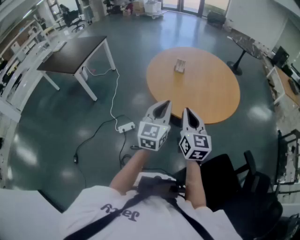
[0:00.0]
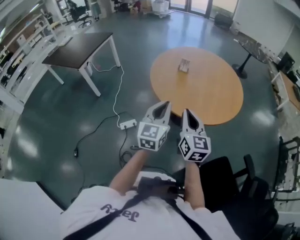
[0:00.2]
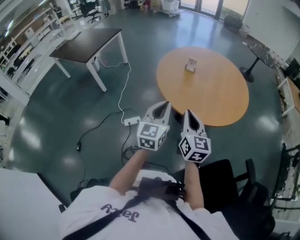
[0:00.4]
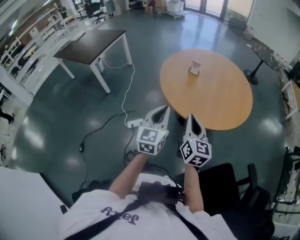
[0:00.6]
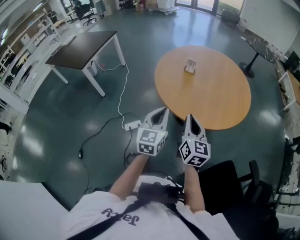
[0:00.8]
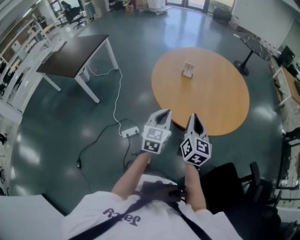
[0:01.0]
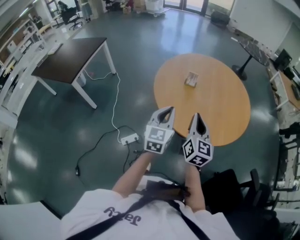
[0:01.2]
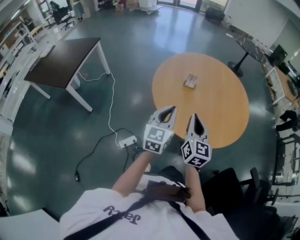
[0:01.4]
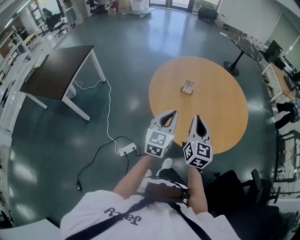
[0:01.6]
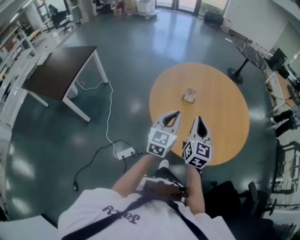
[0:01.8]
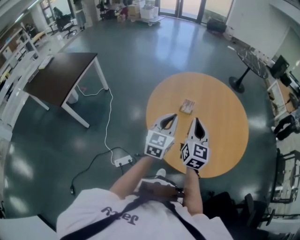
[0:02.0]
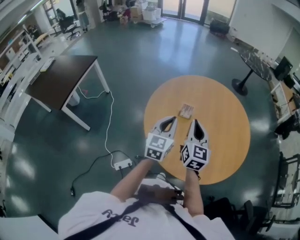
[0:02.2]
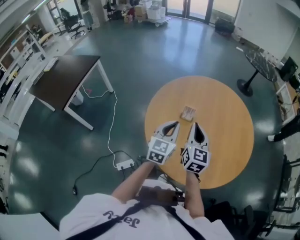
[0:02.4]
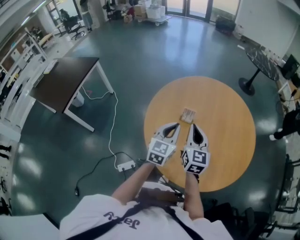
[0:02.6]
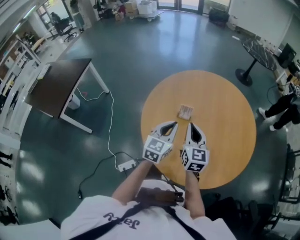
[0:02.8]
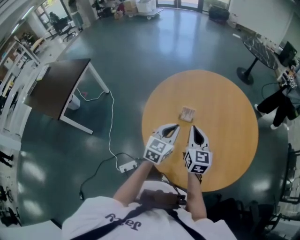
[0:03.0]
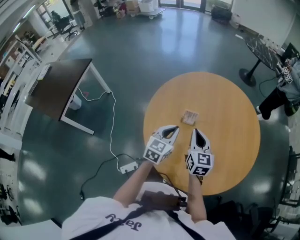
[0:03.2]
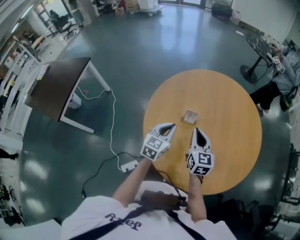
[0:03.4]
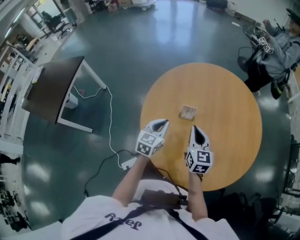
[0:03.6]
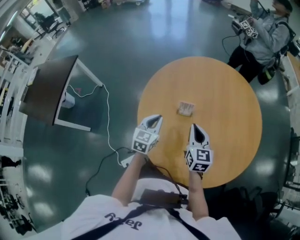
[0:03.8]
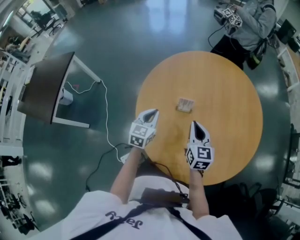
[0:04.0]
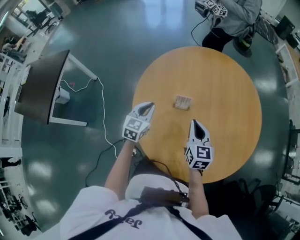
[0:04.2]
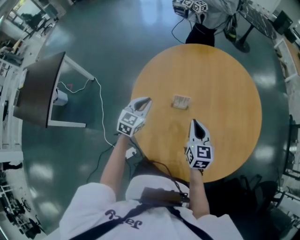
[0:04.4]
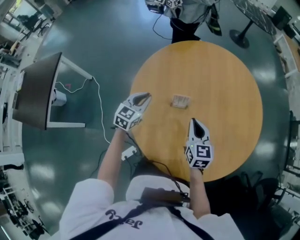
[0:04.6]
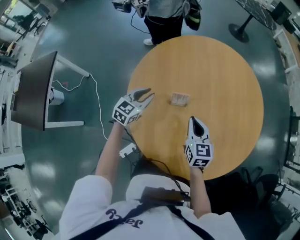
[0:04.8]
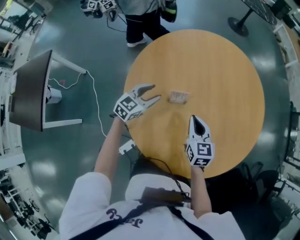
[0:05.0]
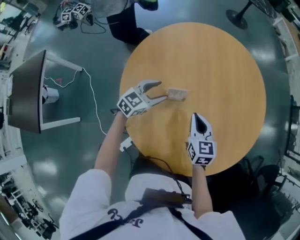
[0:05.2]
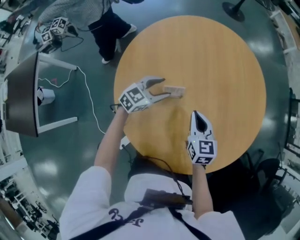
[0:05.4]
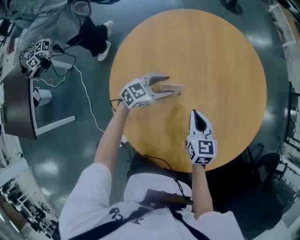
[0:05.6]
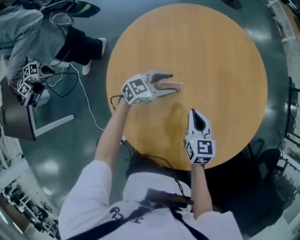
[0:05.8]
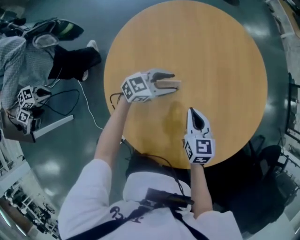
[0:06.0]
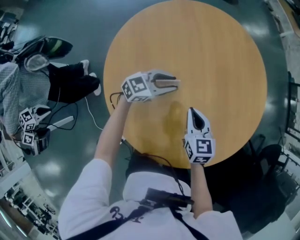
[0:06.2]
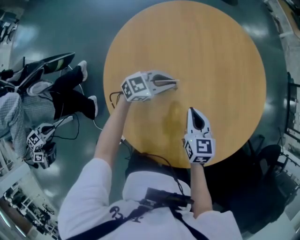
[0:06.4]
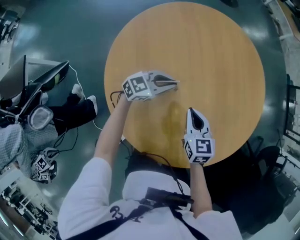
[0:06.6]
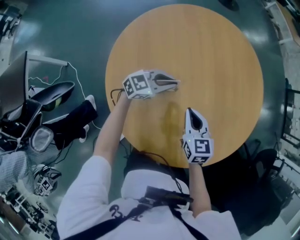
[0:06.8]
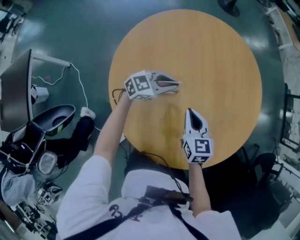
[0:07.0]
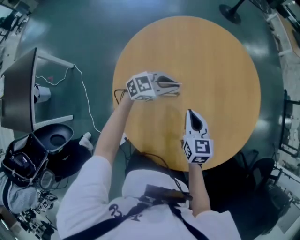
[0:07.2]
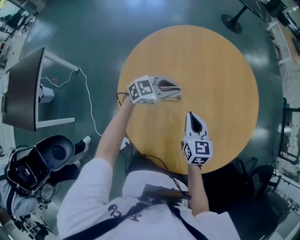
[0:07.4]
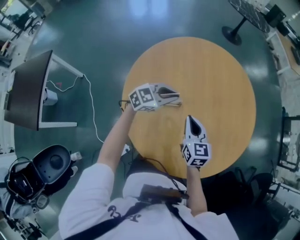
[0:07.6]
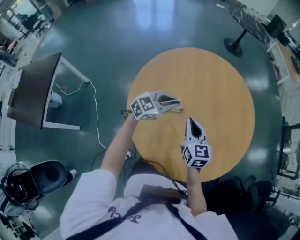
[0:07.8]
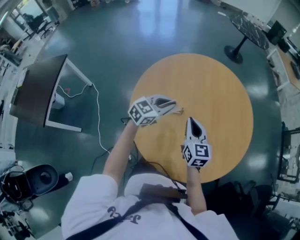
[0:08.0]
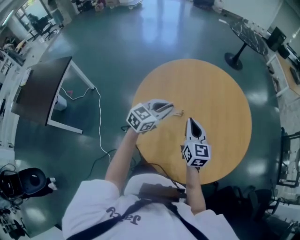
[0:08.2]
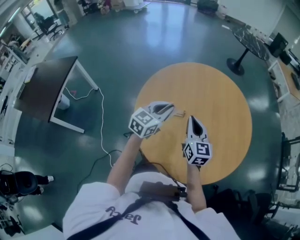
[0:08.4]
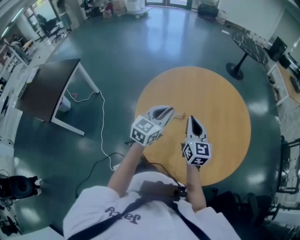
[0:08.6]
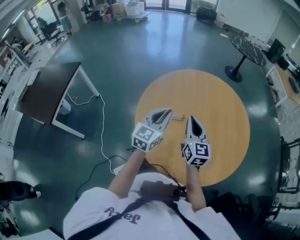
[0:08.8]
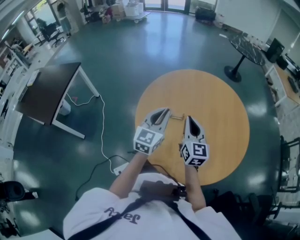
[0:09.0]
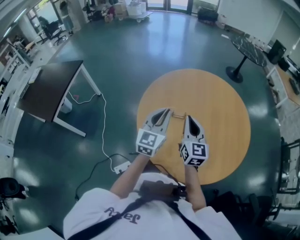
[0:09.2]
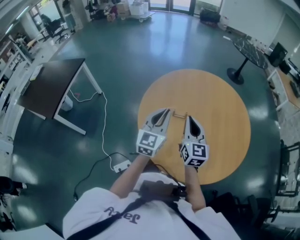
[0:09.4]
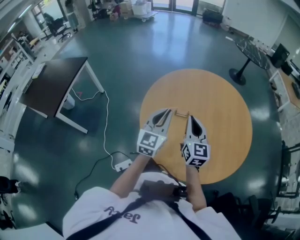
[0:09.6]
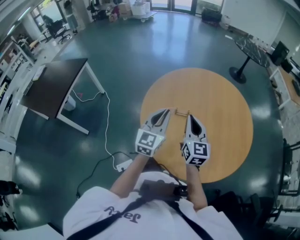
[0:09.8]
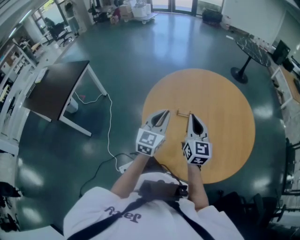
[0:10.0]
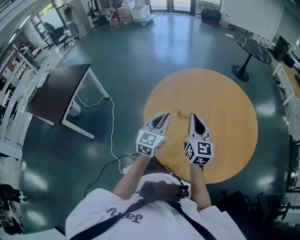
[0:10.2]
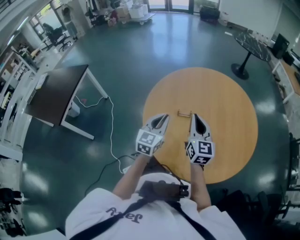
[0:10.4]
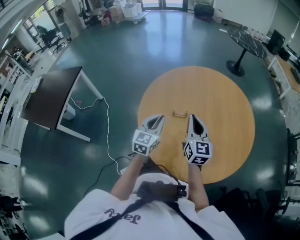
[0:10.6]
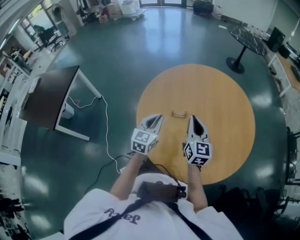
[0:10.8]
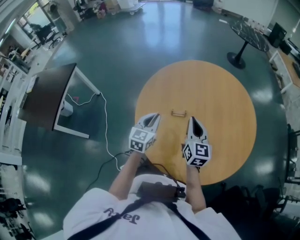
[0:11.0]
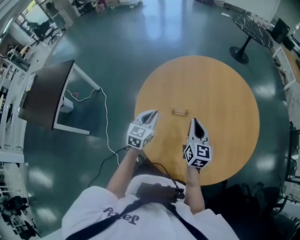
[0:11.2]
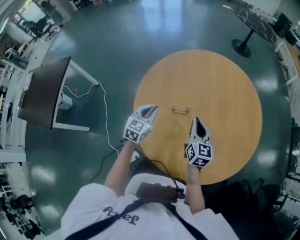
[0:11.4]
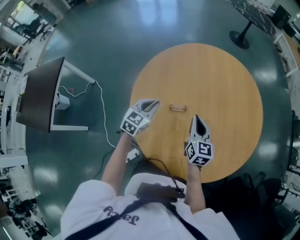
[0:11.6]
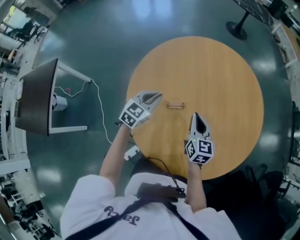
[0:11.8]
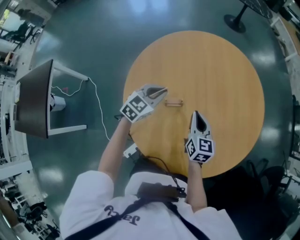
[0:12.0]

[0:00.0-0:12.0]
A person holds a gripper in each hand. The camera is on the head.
0.0 to 1.6 s: The grippers both shift forward by roughly 25 cm.
1.6 to 3.0 s: The left gripper moves forward and downward, roughly 20 cm. The right gripper is displaced forward by some 20 cm.
3.0 to 4.4 s: The left gripper goes some 20 cm to the left, forward and downward. Meanwhile the right gripper heads downward, covering about 10 cm.
4.4 to 6.0 s: The left gripper shifts by roughly 20 cm, swivels roughly 50 degrees, and opens up, while the right gripper goes roughly 10 cm downward.
6.0 to 7.6 s: The grippers both shift upward by some 10 cm. The left gripper closes its fingers.
7.6 to 9.0 s: The grippers both shift upward by about 15 cm. The left gripper changes its angle by about 60 degrees. Meanwhile the right gripper swivels roughly 20 degrees.
9.0 to 10.4 s: The left gripper is displaced downward by some 5 cm.
10.4 to 12.0 s: The left gripper goes about 20 cm forward and downward, and turns by some 40 degrees, while the right gripper heads downward and forward, covering about 15 cm, and turns by some 30 degrees.

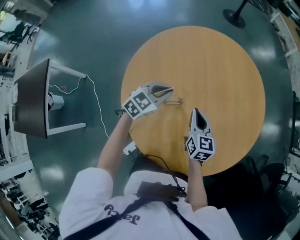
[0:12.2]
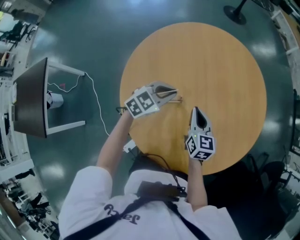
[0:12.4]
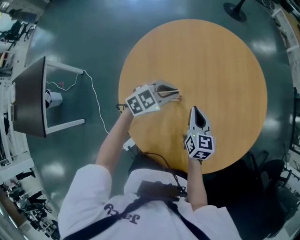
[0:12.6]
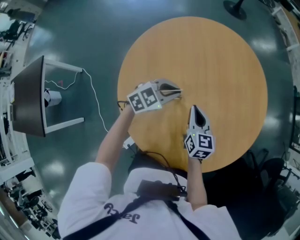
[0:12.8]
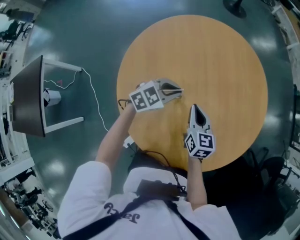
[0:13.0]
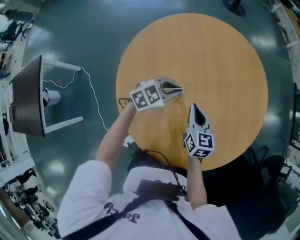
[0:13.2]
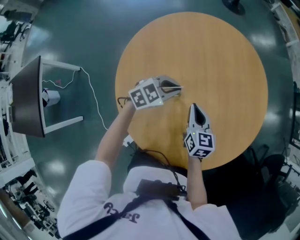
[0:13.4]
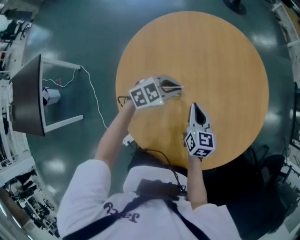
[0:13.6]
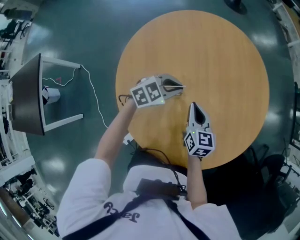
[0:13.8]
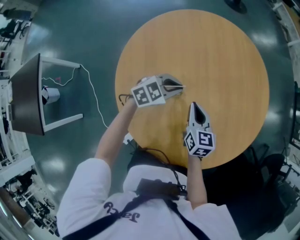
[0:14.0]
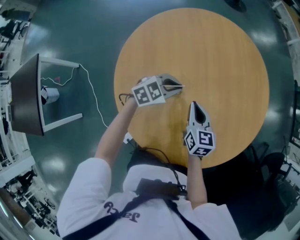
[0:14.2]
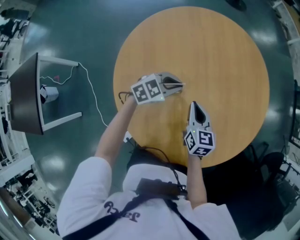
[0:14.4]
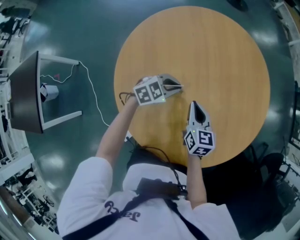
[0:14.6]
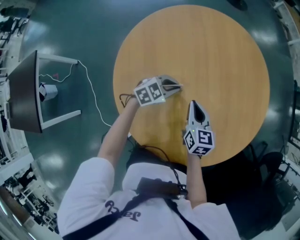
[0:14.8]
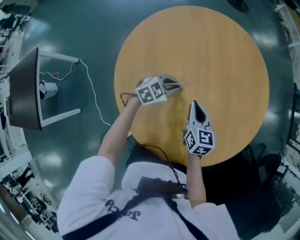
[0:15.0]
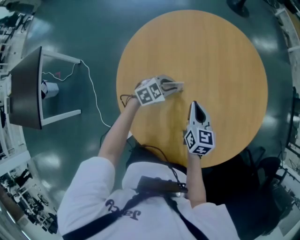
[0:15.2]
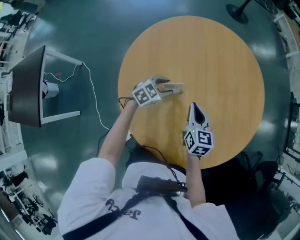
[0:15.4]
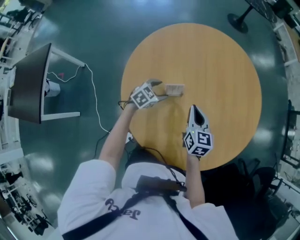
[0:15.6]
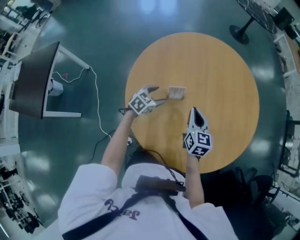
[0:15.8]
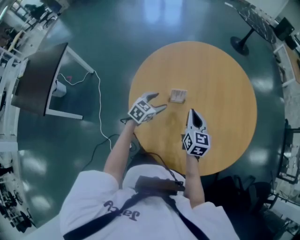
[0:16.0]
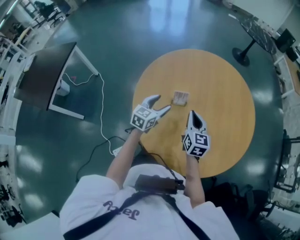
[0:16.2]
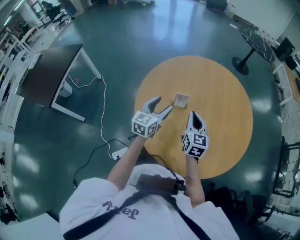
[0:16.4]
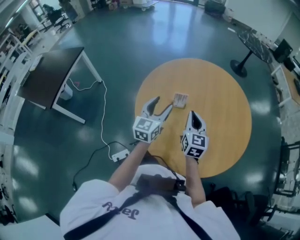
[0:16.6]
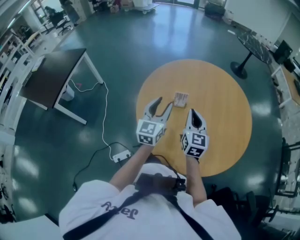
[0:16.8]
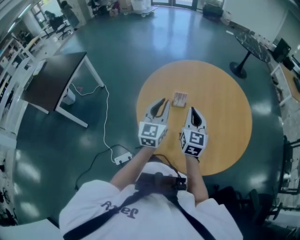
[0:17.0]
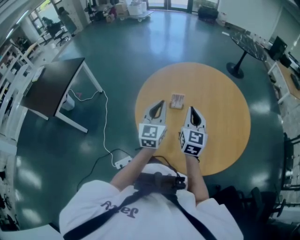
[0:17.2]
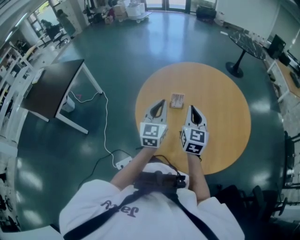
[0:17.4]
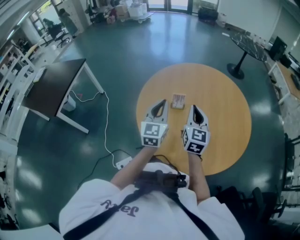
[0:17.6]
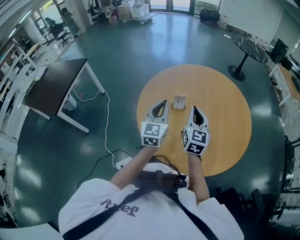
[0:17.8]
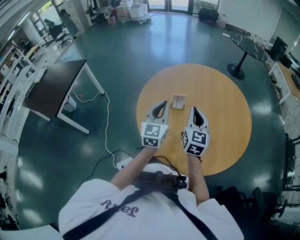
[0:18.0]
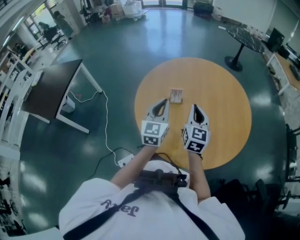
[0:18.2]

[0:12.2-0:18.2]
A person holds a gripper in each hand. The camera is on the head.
12.2 to 13.8 s: The left gripper shifts some 5 cm to the right.
13.8 to 15.2 s: The left gripper travels downward by approximately 10 cm.
15.2 to 16.6 s: The left gripper is displaced upward by some 20 cm, tips its fingers upward by roughly 40 degrees, and opens its fingers. Meanwhile the right gripper heads upward, covering approximately 10 cm, and rotates some 20 degrees.
16.6 to 18.2 s: The left gripper ends up roughly 5 cm from where it was, and closes up. The right gripper ends up approximately 5 cm from where it was.

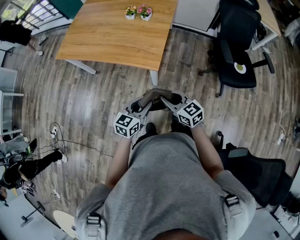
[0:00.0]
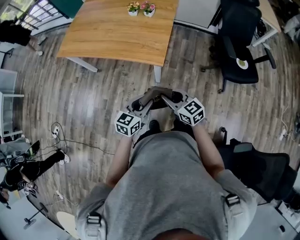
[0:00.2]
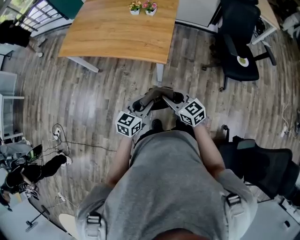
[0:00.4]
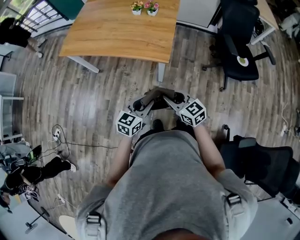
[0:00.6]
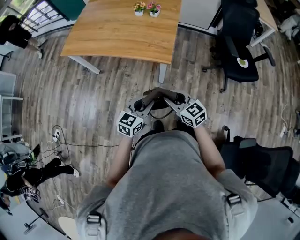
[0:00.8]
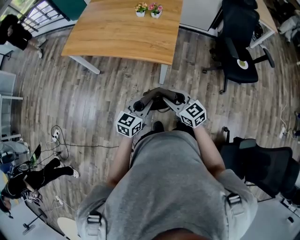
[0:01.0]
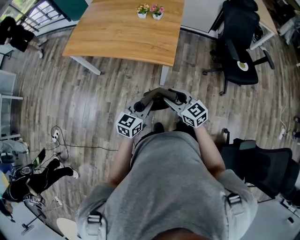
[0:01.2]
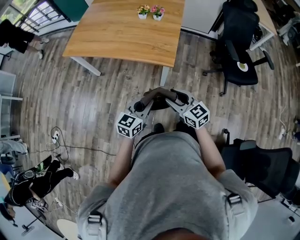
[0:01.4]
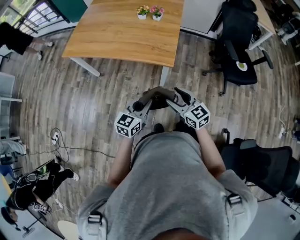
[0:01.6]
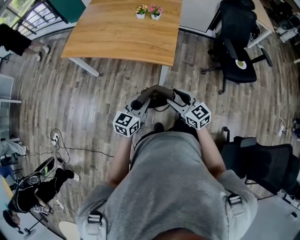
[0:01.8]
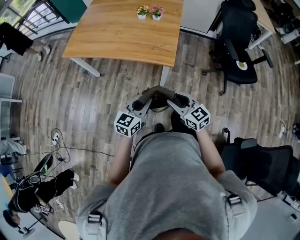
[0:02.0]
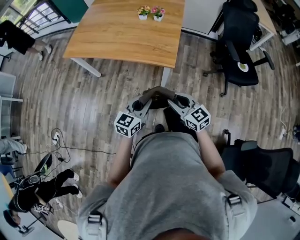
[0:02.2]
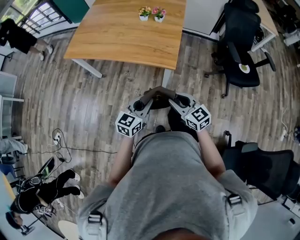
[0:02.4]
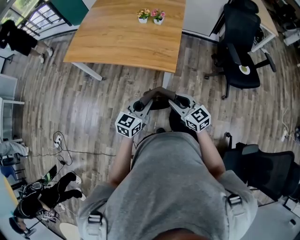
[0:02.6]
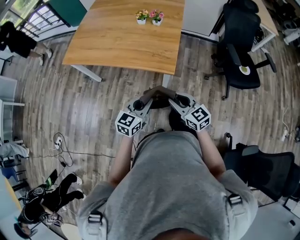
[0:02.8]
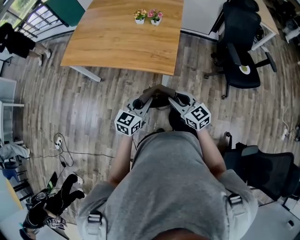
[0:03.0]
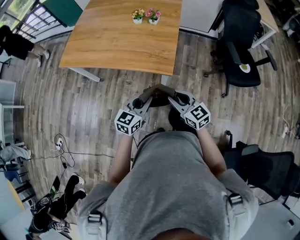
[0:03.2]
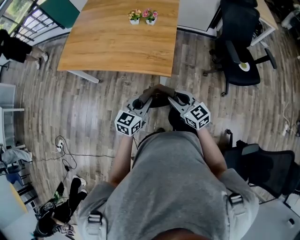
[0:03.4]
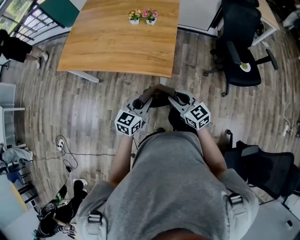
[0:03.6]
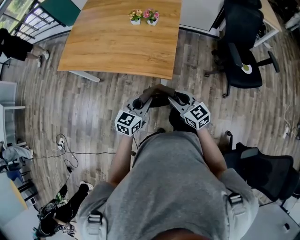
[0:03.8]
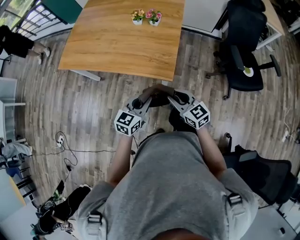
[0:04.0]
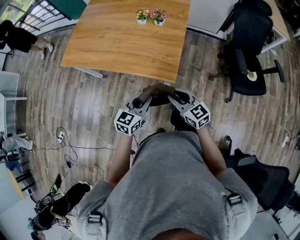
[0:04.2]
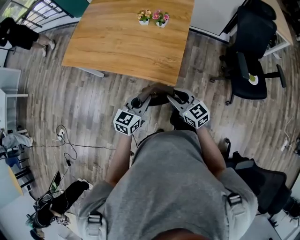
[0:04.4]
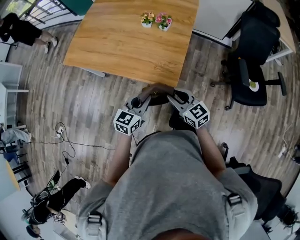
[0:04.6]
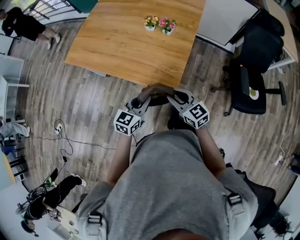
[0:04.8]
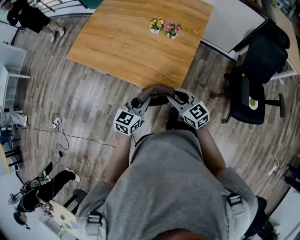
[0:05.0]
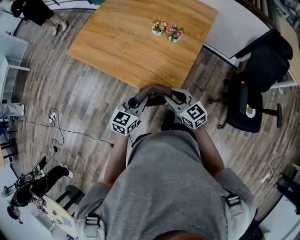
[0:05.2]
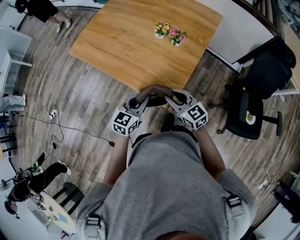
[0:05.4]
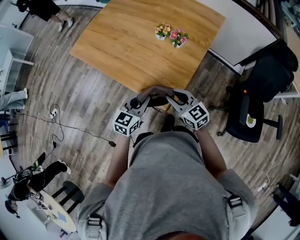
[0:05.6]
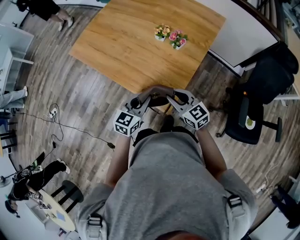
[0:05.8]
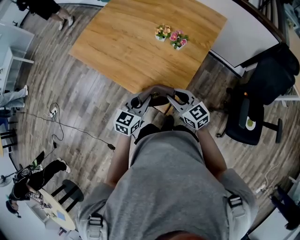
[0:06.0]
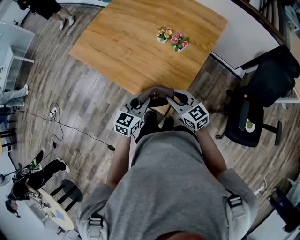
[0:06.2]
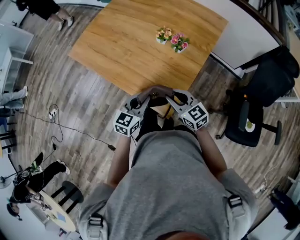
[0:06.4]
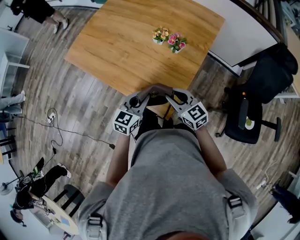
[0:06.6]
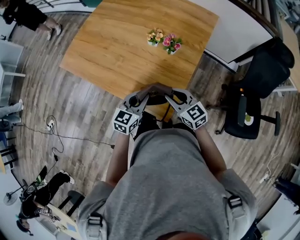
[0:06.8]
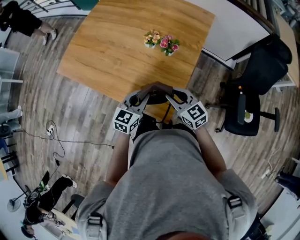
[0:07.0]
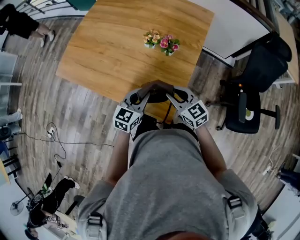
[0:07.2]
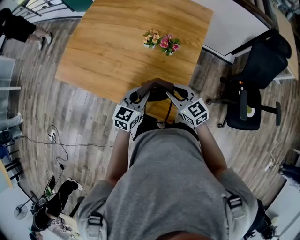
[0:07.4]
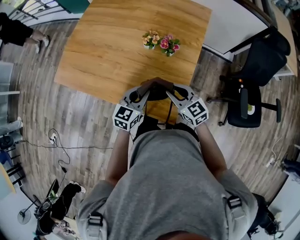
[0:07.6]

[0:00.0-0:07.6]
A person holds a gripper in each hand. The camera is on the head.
0.0 to 1.6 s: The grippers both shift to the left by approximately 10 cm. The right gripper opens up.
1.6 to 3.0 s: The two grippers go roughly 5 cm forward. The right gripper closes.
3.0 to 4.6 s: Both grippers move forward, roughly 15 cm.
4.6 to 6.0 s: The grippers both shift forward by approximately 15 cm.
6.0 to 7.6 s: The grippers both shift forward by about 10 cm.
